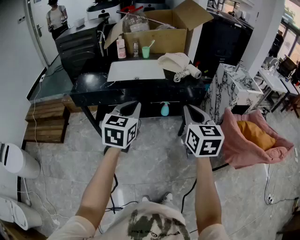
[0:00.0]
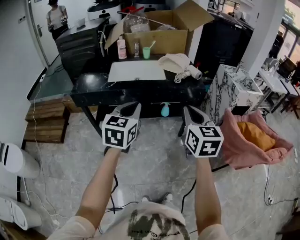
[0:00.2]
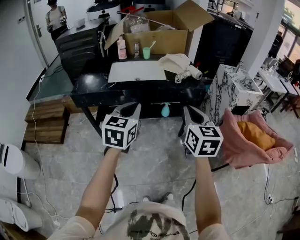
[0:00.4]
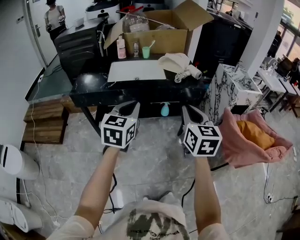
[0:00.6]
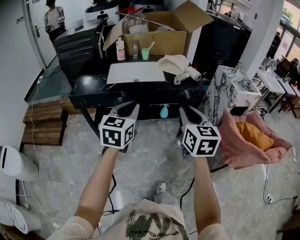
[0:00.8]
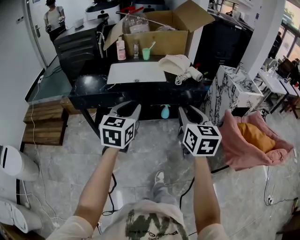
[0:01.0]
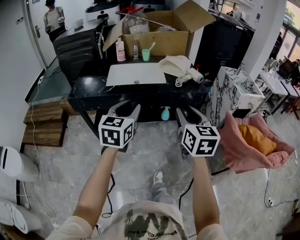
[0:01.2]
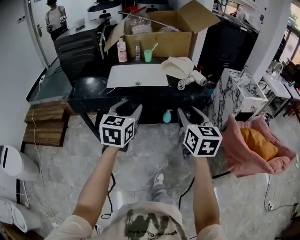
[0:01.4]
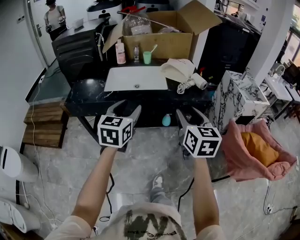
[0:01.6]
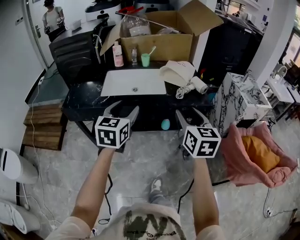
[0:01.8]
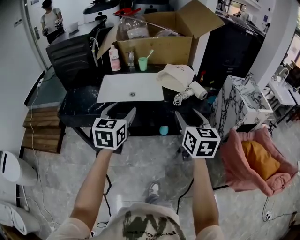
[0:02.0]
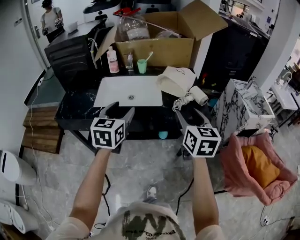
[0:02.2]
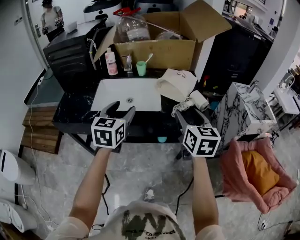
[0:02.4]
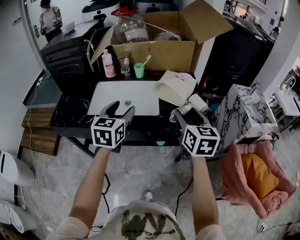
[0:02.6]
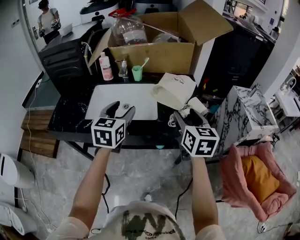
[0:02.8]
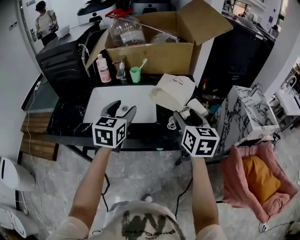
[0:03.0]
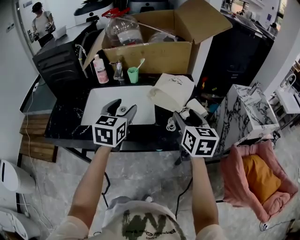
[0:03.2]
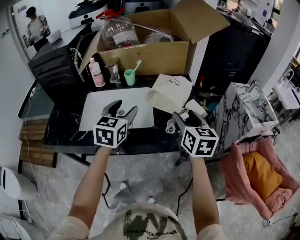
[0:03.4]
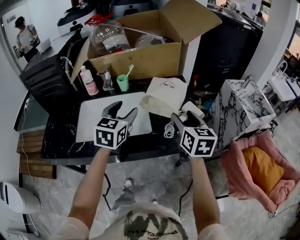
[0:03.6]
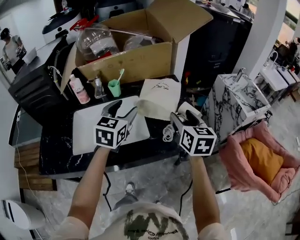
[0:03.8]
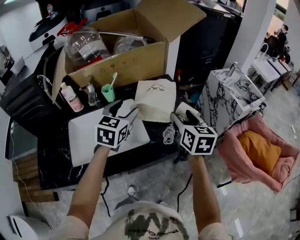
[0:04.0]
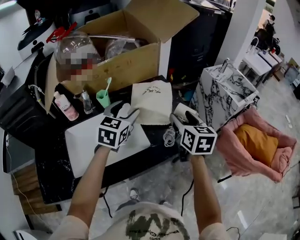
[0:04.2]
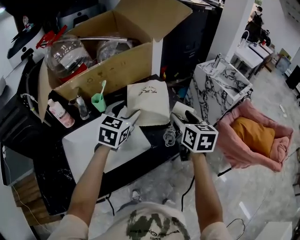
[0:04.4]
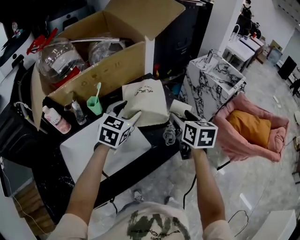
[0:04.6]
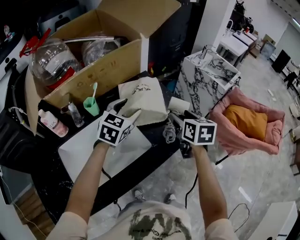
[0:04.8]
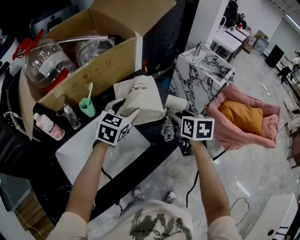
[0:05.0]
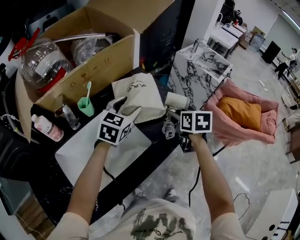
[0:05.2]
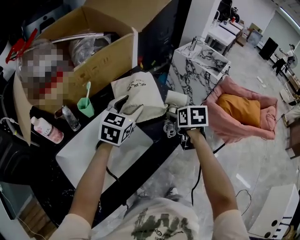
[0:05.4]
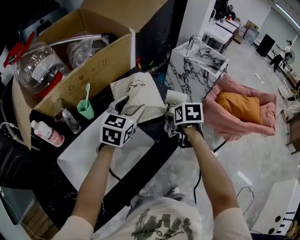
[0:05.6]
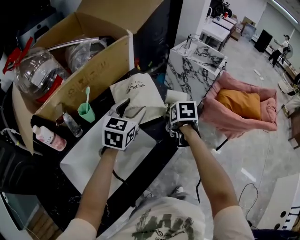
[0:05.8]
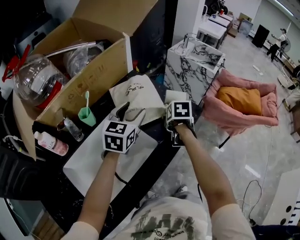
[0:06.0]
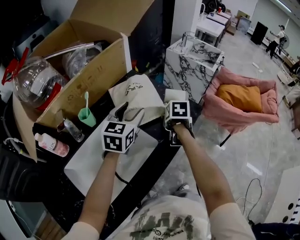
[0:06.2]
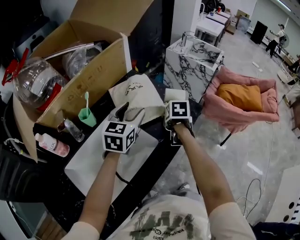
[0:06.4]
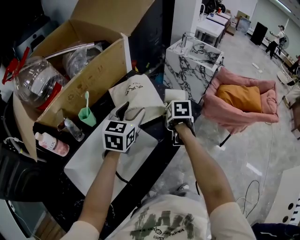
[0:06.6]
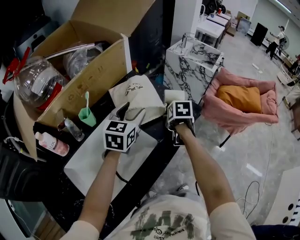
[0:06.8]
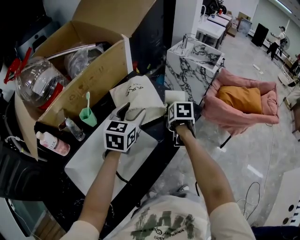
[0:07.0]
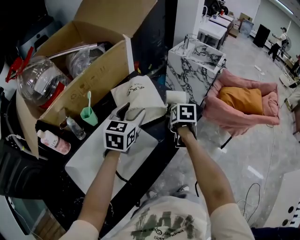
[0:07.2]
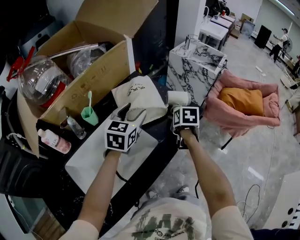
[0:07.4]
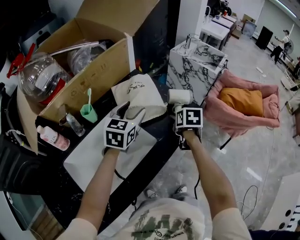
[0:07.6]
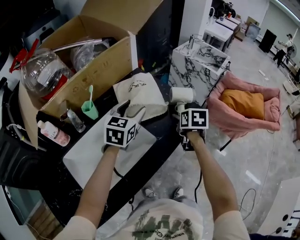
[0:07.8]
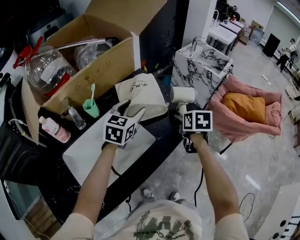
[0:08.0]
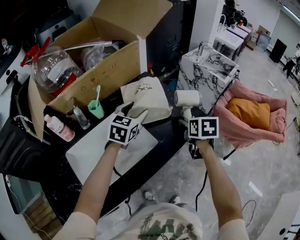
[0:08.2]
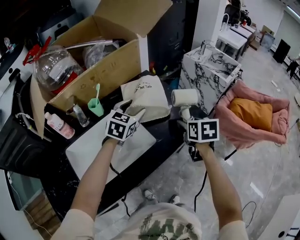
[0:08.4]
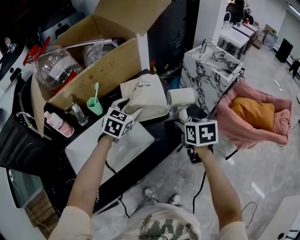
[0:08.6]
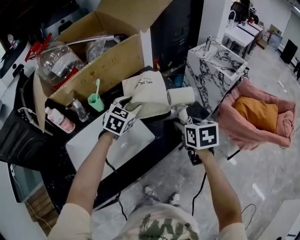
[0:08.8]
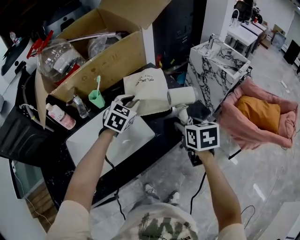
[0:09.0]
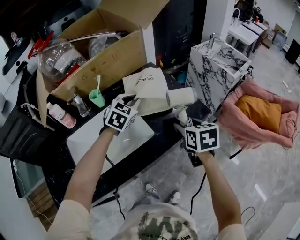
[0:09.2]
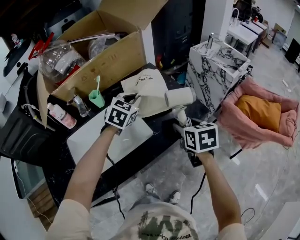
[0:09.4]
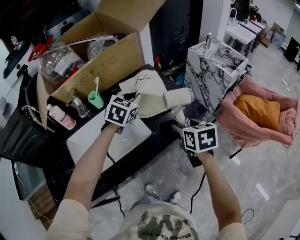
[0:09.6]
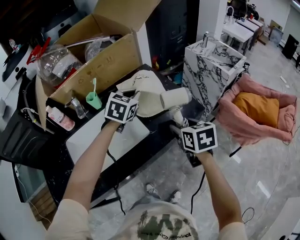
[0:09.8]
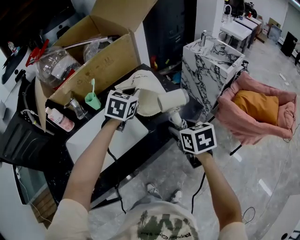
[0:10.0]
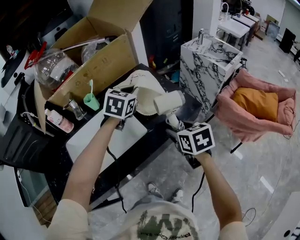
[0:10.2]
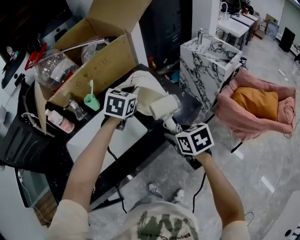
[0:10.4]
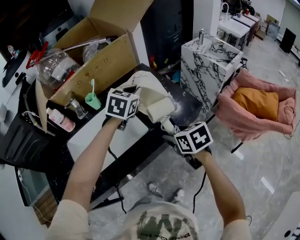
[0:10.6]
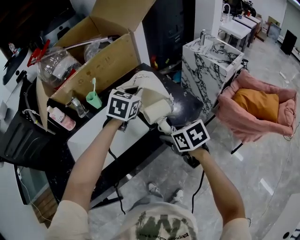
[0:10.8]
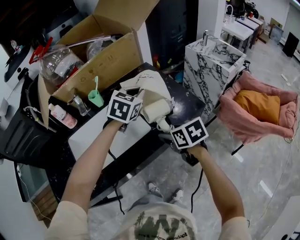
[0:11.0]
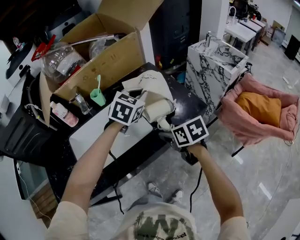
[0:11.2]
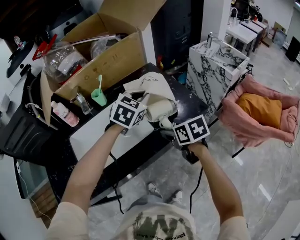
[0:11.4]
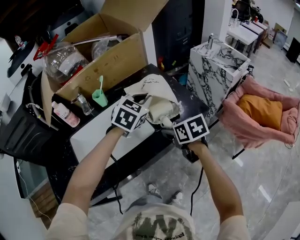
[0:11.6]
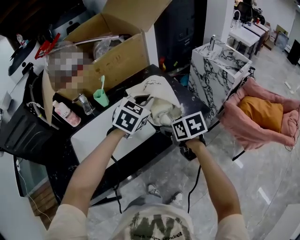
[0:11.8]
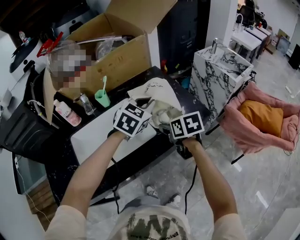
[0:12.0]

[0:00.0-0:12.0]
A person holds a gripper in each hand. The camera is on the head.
0.0 to 1.6 s: Both grippers travel together forward, some 10 cm. The right gripper opens. The left gripper opens.
1.6 to 3.0 s: Both grippers travel together forward, about 25 cm.
3.0 to 4.4 s: The right gripper shifts by approximately 10 cm, and swivels approximately 30 degrees, while the left gripper changes place by some 20 cm, and turns by approximately 40 degrees.
4.4 to 6.0 s: The right gripper heads downward, covering about 15 cm, and angles its fingers downward, by some 40 degrees.
6.0 to 7.6 s: The grippers make only small movements.
7.6 to 9.0 s: The right gripper shifts about 10 cm upward and backward, and turns by about 20 degrees; the left gripper moves roughly 5 cm, swivels approximately 20 degrees, and closes up.
9.0 to 10.4 s: The right gripper travels backward by some 5 cm. The left gripper moves upward and to the right, approximately 10 cm.
10.4 to 12.0 s: The left gripper travels backward by some 5 cm. The right gripper heads forward, covering some 5 cm.

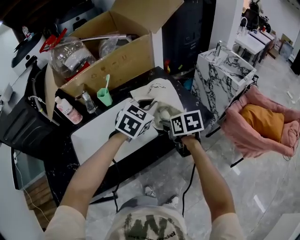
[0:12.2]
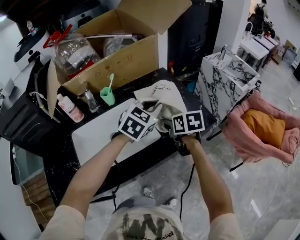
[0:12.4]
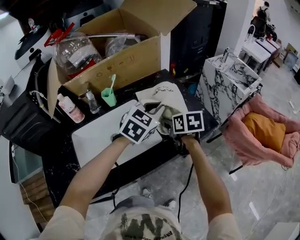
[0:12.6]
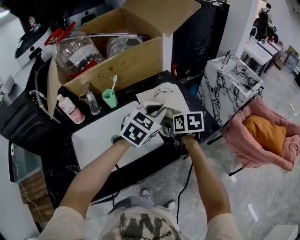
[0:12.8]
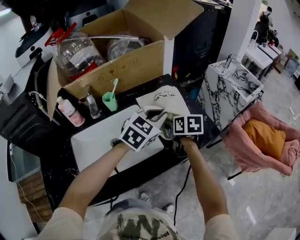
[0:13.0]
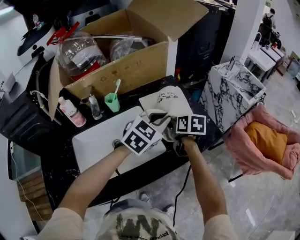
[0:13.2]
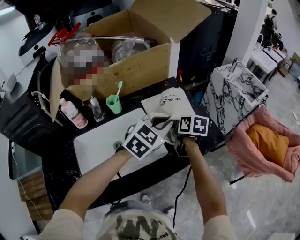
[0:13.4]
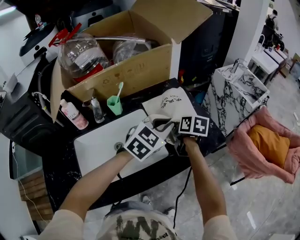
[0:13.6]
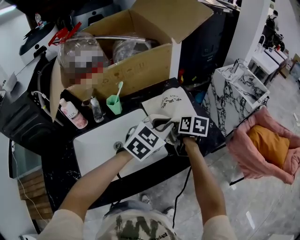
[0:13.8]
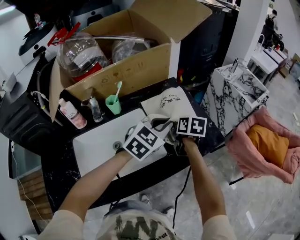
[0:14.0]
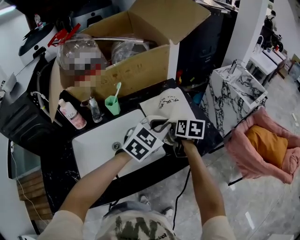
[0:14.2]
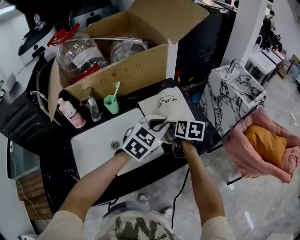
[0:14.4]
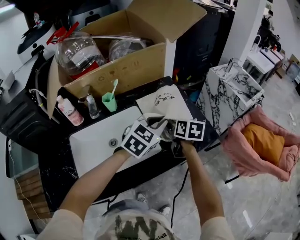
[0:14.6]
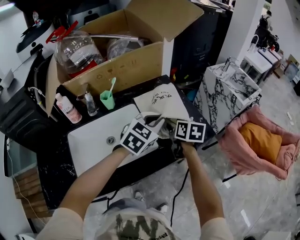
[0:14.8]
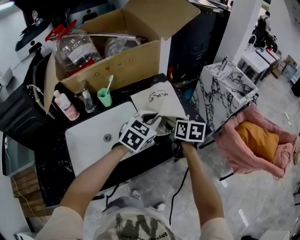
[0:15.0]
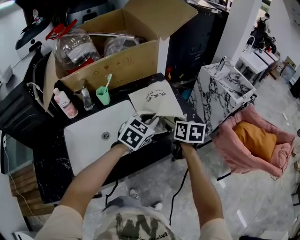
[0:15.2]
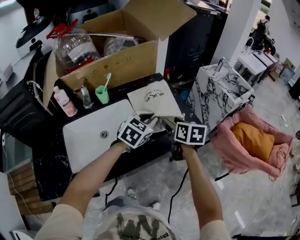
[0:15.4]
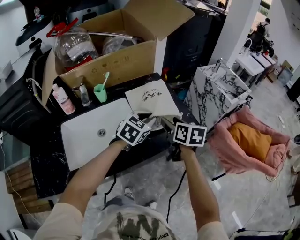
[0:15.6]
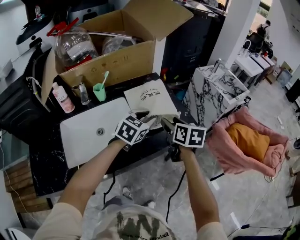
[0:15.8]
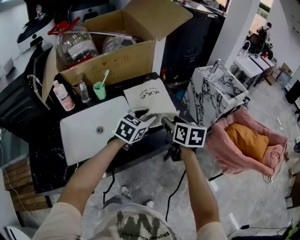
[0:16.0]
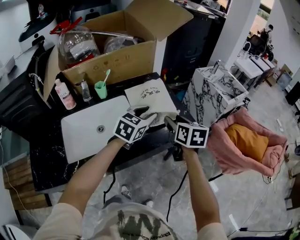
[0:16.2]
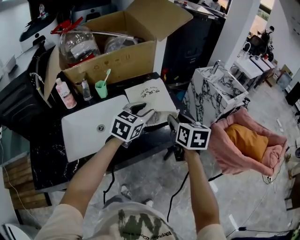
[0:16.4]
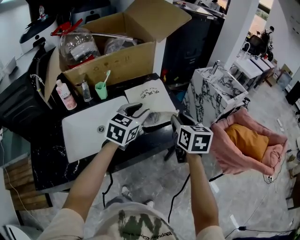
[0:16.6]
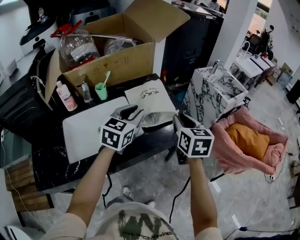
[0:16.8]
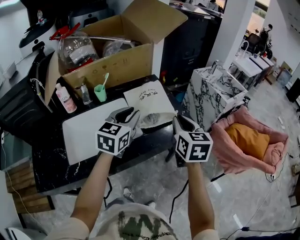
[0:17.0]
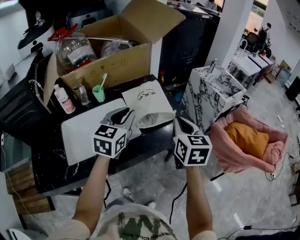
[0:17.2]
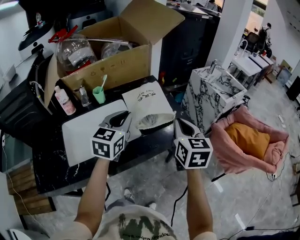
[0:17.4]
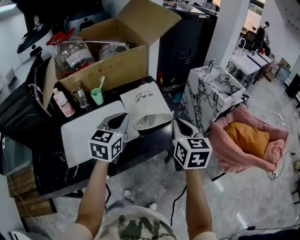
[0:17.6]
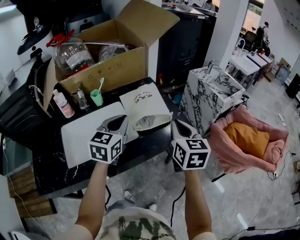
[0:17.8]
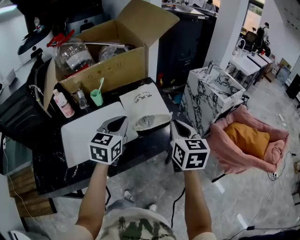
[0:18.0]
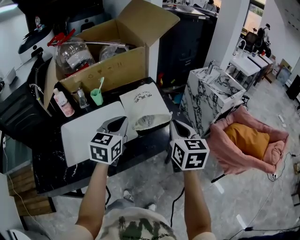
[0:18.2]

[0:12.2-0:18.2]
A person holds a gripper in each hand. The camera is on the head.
12.2 to 13.8 s: The right gripper shifts roughly 10 cm forward.
13.8 to 15.2 s: The right gripper shifts roughly 10 cm backward and to the right.
15.2 to 16.6 s: The right gripper is displaced upward, backward and to the right by approximately 15 cm, and closes its fingers, while the left gripper heads upward, covering some 5 cm, and opens.
16.6 to 18.2 s: The left gripper moves roughly 5 cm, and closes its fingers, while the right gripper shifts by approximately 5 cm, and closes up.

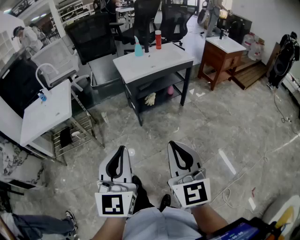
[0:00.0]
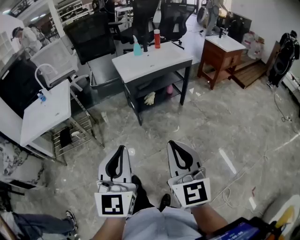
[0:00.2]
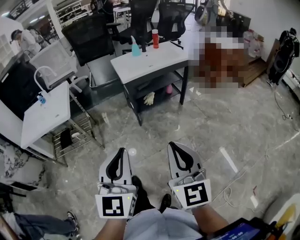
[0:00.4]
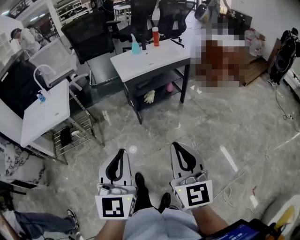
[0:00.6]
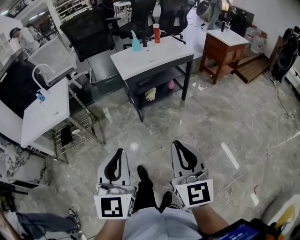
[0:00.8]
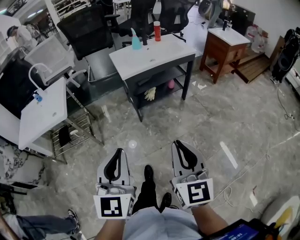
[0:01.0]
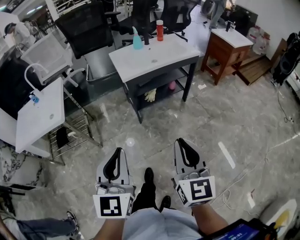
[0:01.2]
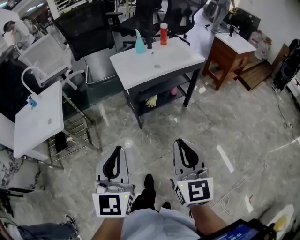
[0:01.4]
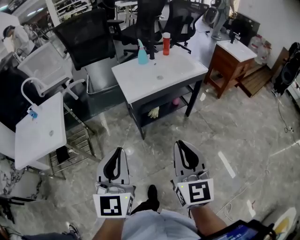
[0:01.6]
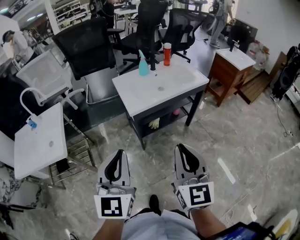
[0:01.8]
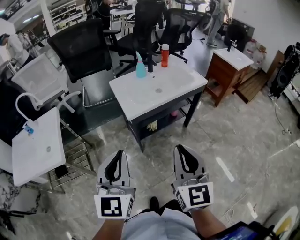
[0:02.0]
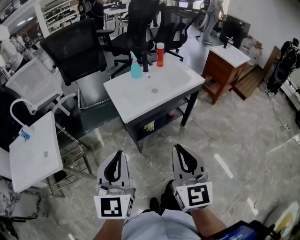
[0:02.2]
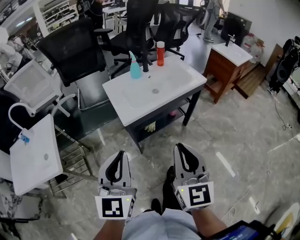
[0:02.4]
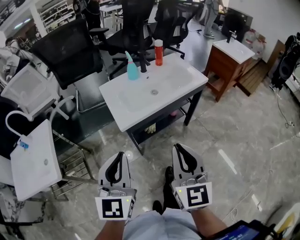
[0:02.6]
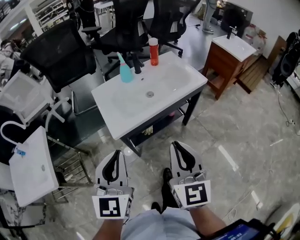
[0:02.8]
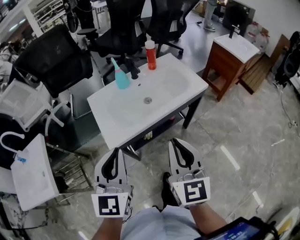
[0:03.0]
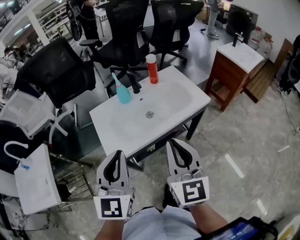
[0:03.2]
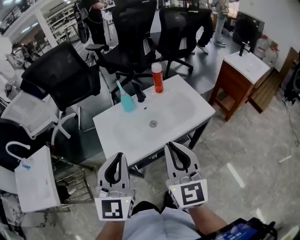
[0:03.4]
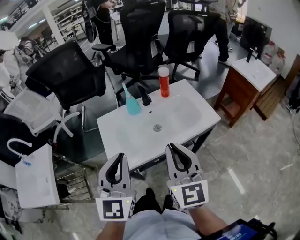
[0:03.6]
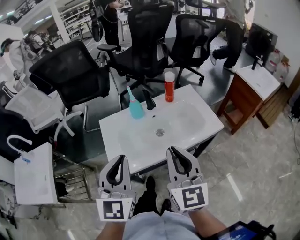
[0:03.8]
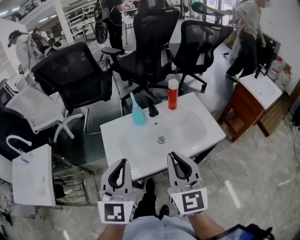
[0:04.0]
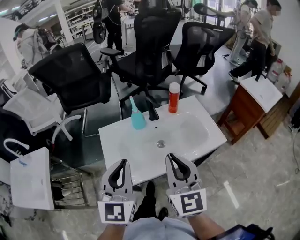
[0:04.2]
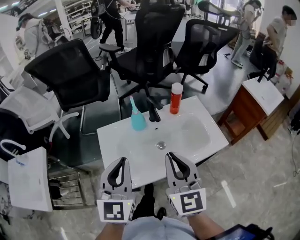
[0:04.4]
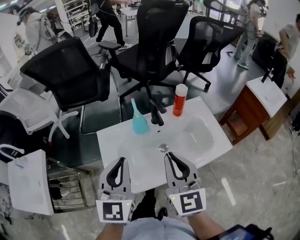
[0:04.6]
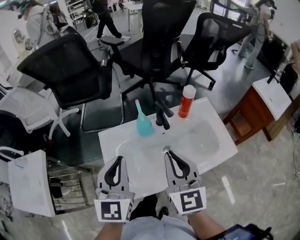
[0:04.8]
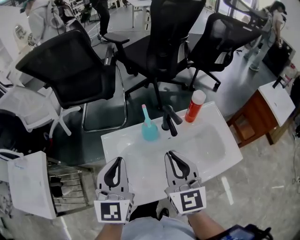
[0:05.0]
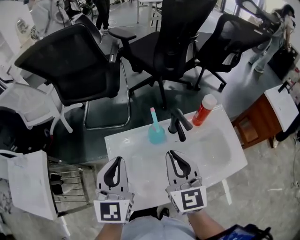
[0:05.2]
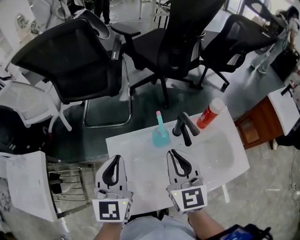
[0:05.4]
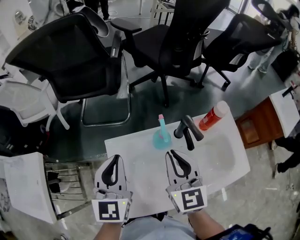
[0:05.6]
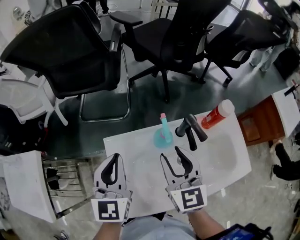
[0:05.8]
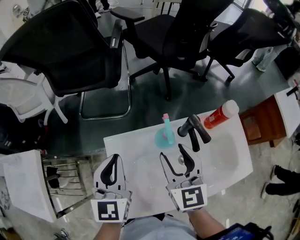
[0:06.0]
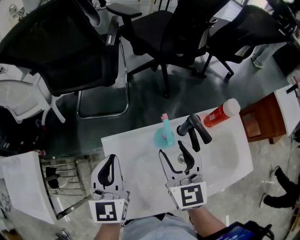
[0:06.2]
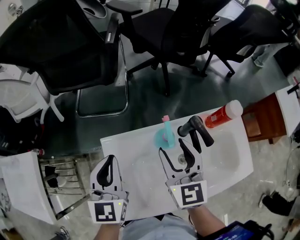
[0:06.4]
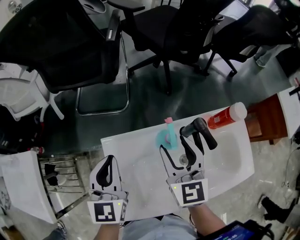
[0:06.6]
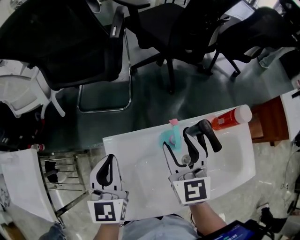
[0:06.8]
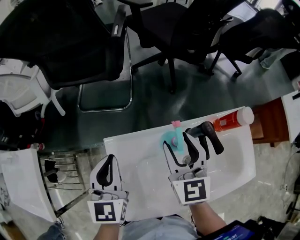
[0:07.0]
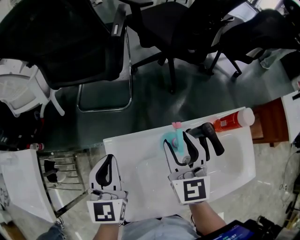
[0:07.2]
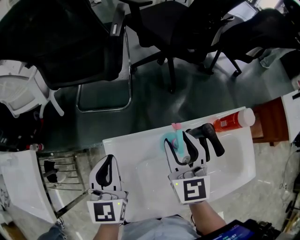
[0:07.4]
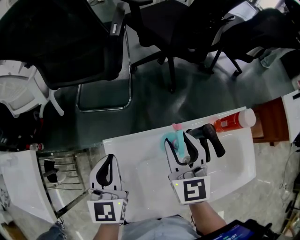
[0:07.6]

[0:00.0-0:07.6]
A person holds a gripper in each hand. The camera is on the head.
0.0 to 1.6 s: Both grippers move forward, approximately 25 cm.
1.6 to 3.0 s: The grippers both shift forward by some 35 cm.
3.0 to 4.6 s: The two grippers go some 25 cm forward.
4.6 to 6.0 s: The right gripper shifts roughly 25 cm forward and downward, and opens. The left gripper moves forward, to the left and downward, approximately 25 cm.
6.0 to 7.6 s: The right gripper goes some 10 cm forward, while the left gripper moves some 5 cm.
